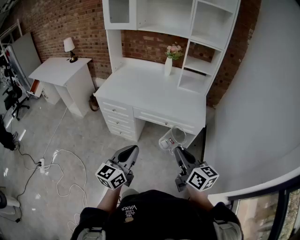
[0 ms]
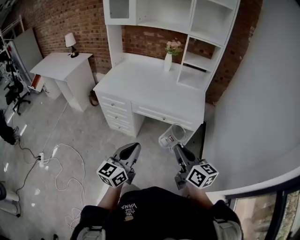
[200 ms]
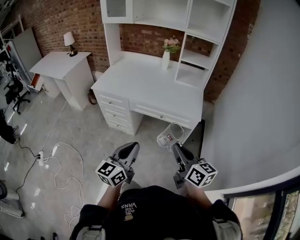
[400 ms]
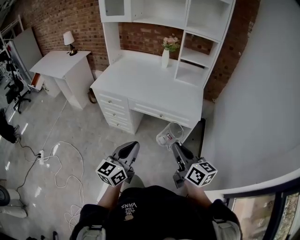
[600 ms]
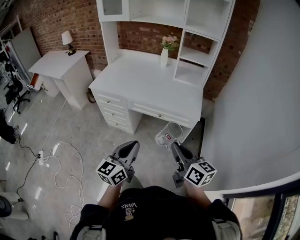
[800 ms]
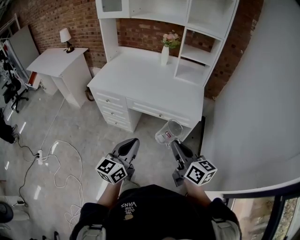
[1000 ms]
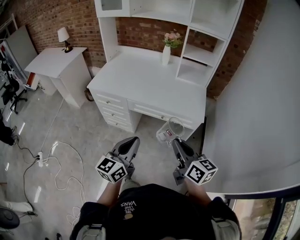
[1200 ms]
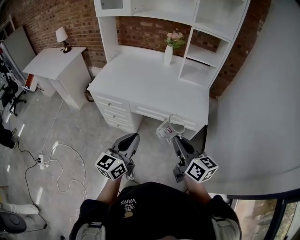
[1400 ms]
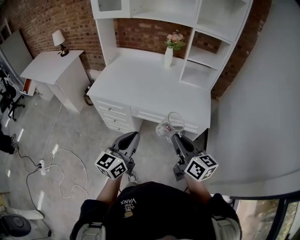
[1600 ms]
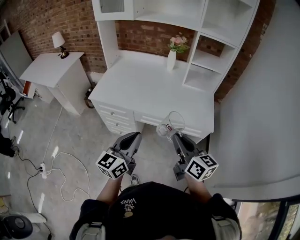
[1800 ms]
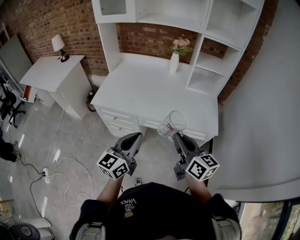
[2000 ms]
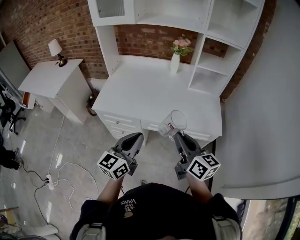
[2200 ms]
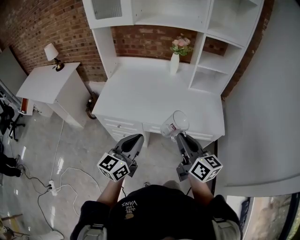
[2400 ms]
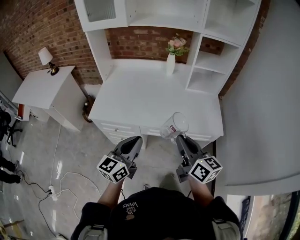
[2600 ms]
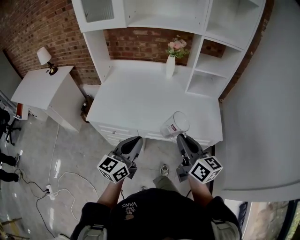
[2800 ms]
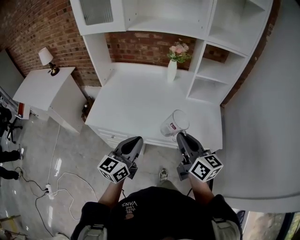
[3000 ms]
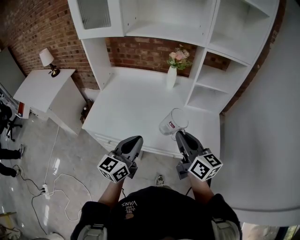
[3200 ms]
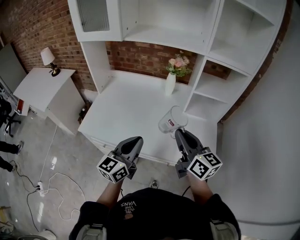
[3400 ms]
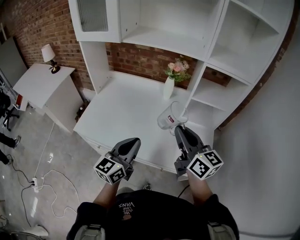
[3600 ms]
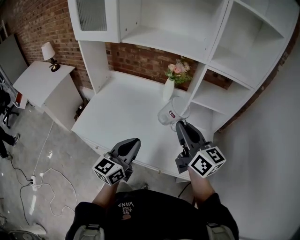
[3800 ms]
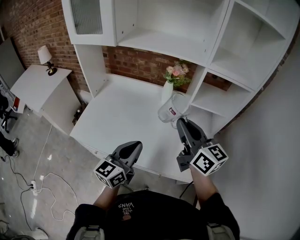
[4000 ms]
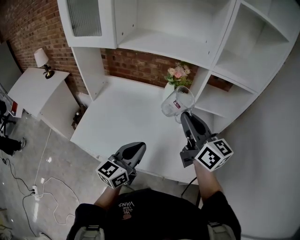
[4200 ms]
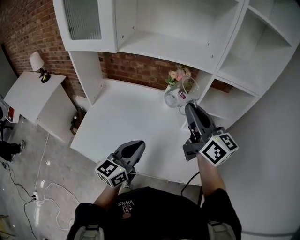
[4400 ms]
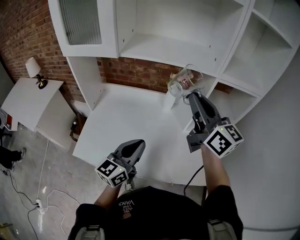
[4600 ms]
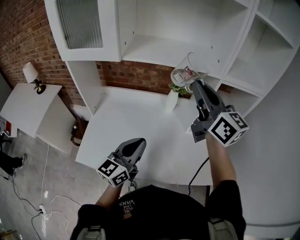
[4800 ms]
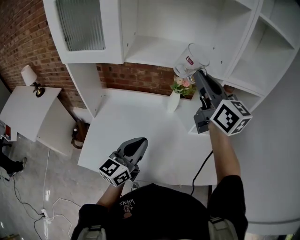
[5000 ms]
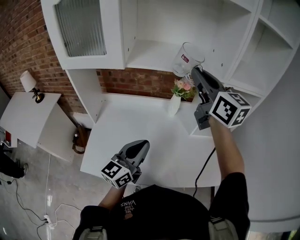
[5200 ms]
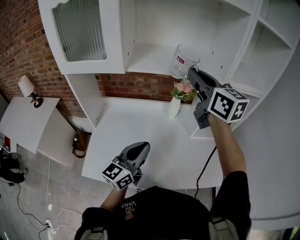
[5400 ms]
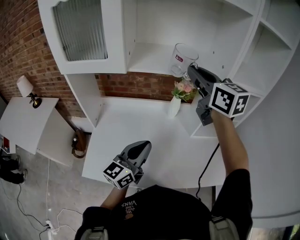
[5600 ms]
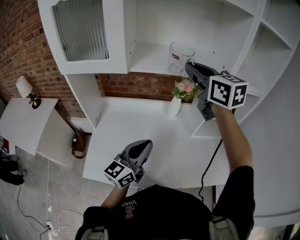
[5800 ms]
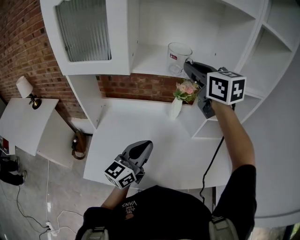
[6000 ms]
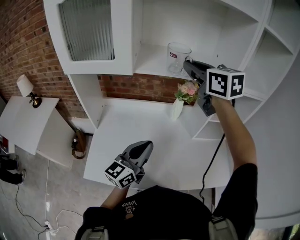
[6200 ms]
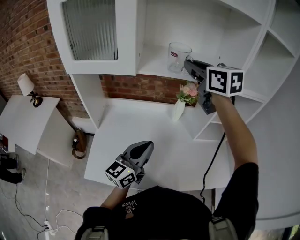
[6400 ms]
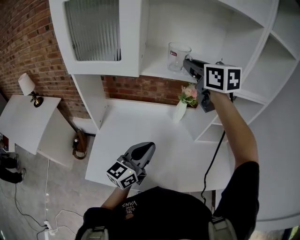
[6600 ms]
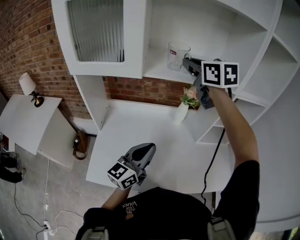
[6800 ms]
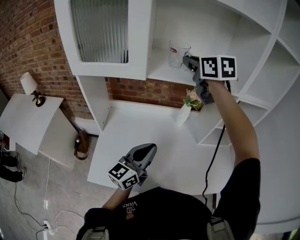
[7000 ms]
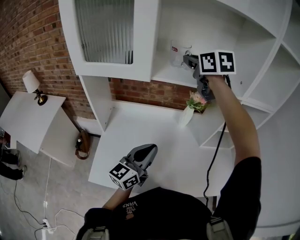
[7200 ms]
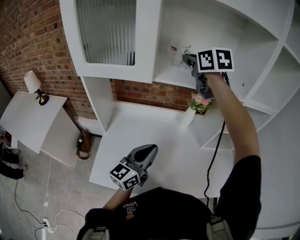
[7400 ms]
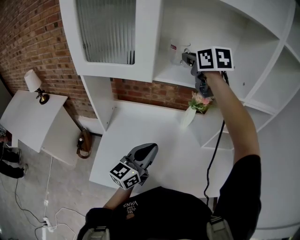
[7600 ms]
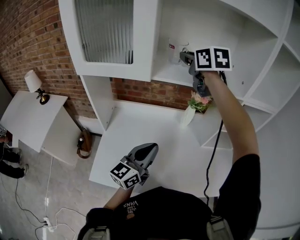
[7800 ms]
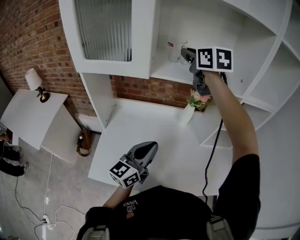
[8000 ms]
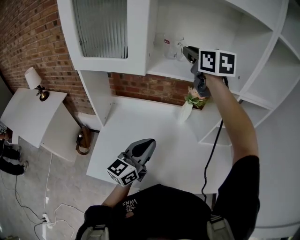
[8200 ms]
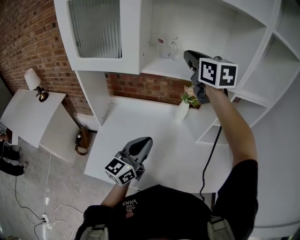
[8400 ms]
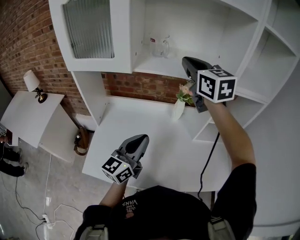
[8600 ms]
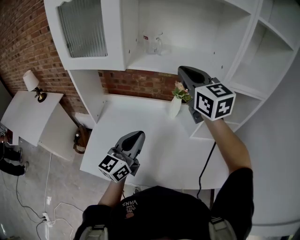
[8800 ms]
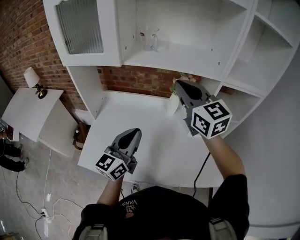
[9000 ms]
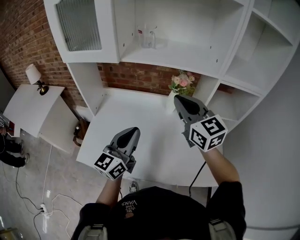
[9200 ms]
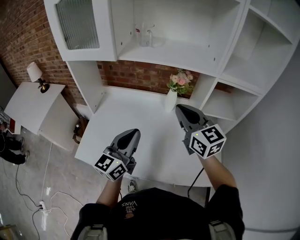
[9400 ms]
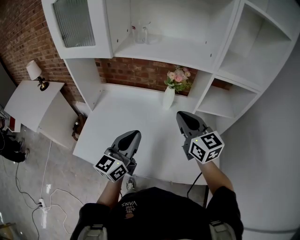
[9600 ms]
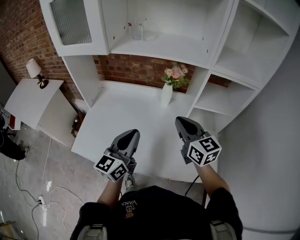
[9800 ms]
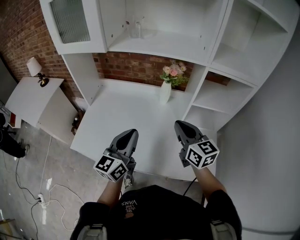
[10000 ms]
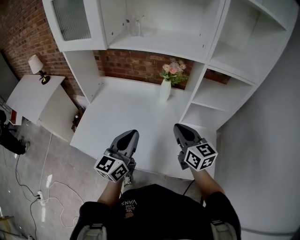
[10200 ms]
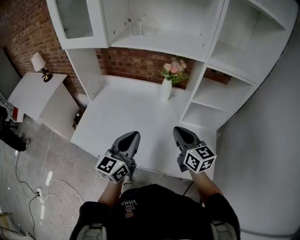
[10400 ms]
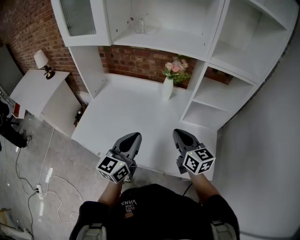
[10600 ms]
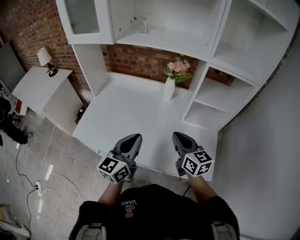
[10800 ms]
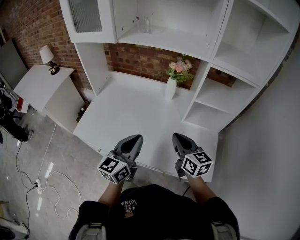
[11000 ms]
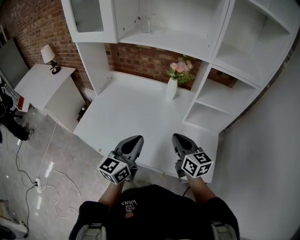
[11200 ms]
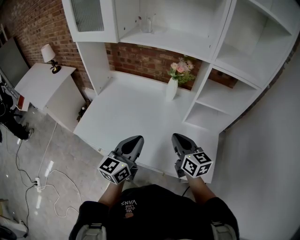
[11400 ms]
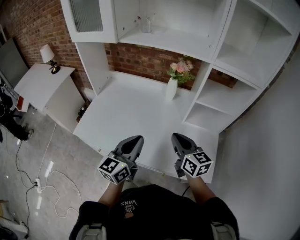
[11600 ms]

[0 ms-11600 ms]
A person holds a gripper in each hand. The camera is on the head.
0 ms to 1400 ms: Both grippers move forward, some 10 cm.
1400 ms to 2800 ms: Both grippers move forward and to the left, roughly 20 cm.
2800 ms to 4400 ms: The right gripper goes approximately 35 cm forward and upward. The left gripper travels forward by some 25 cm.
4400 ms to 5800 ms: The right gripper travels forward, to the left and upward by about 20 cm, and rotates approximately 20 degrees. Meanwhile the left gripper is displaced to the left and forward by some 15 cm.
5800 ms to 7200 ms: The left gripper ends up some 5 cm from where it was. Meanwhile the right gripper travels forward and to the left by roughly 15 cm.
7200 ms to 8800 ms: The right gripper shifts roughly 15 cm backward and to the right, and turns by about 20 degrees; the left gripper ends up roughly 5 cm from where it was.
8800 ms to 10200 ms: The right gripper moves downward, backward and to the right, approximately 30 cm, and swivels approximately 20 degrees, while the left gripper travels to the right and backward by about 15 cm.
10200 ms to 11600 ms: The left gripper ends up about 5 cm from where it was; the right gripper shifts by approximately 5 cm.

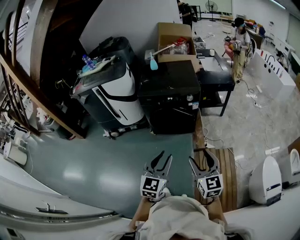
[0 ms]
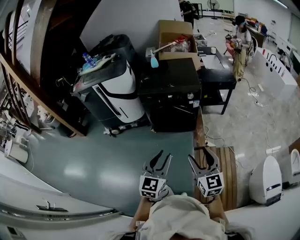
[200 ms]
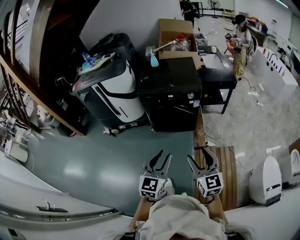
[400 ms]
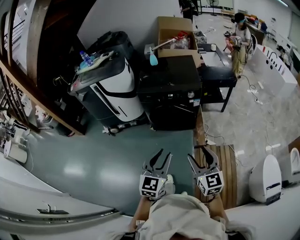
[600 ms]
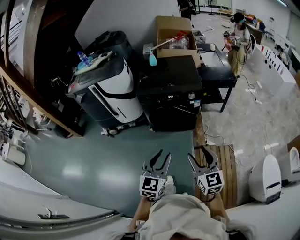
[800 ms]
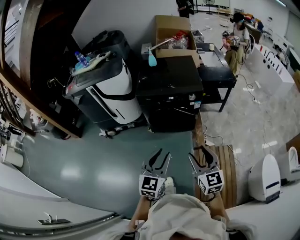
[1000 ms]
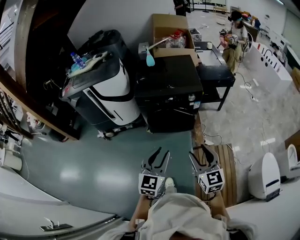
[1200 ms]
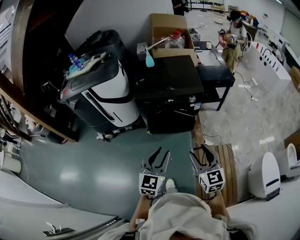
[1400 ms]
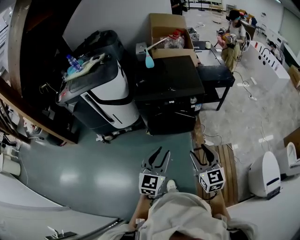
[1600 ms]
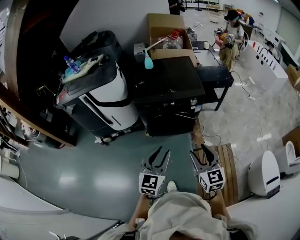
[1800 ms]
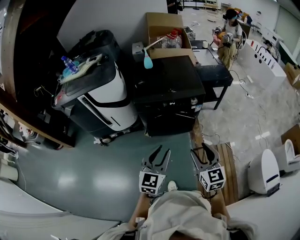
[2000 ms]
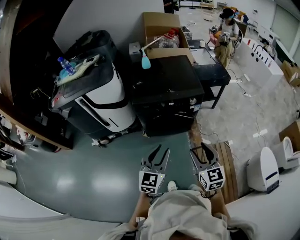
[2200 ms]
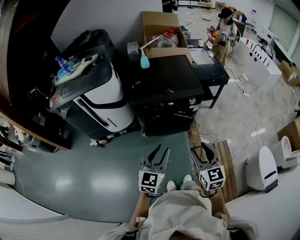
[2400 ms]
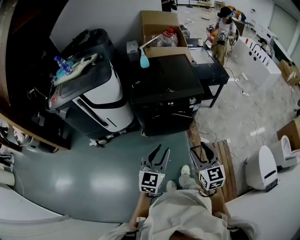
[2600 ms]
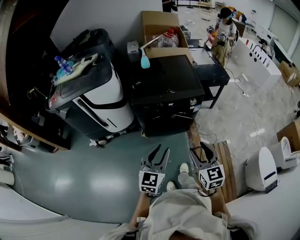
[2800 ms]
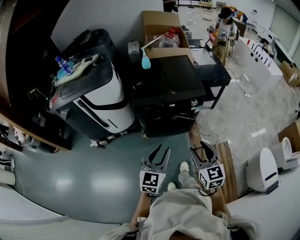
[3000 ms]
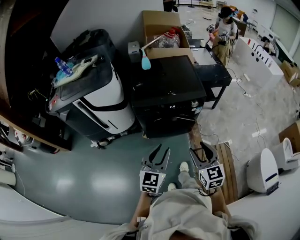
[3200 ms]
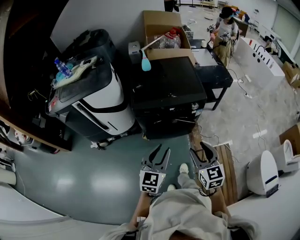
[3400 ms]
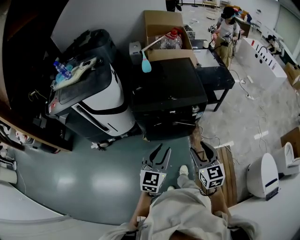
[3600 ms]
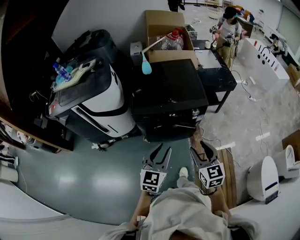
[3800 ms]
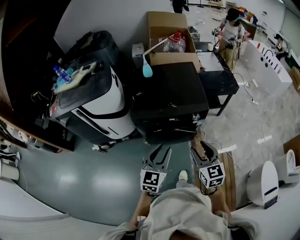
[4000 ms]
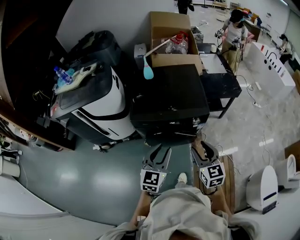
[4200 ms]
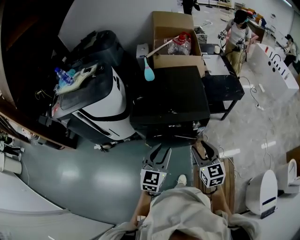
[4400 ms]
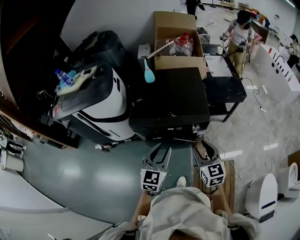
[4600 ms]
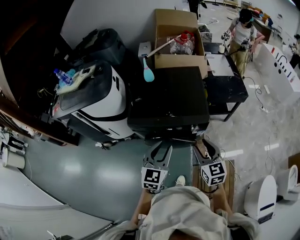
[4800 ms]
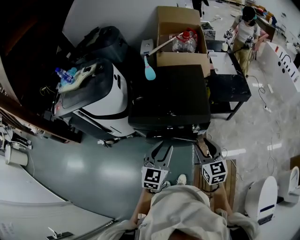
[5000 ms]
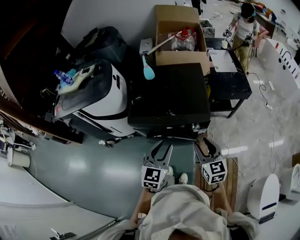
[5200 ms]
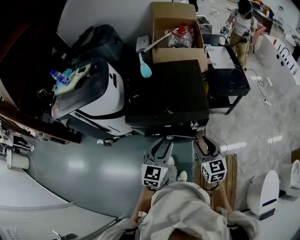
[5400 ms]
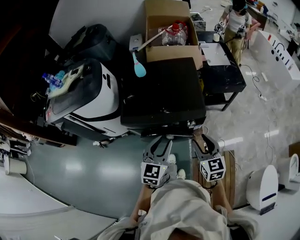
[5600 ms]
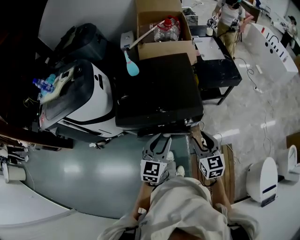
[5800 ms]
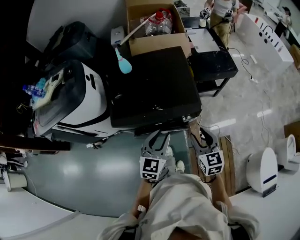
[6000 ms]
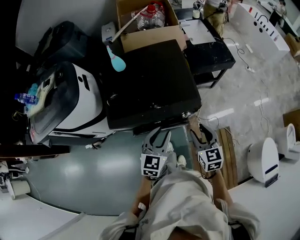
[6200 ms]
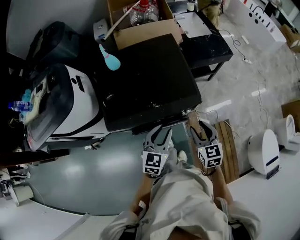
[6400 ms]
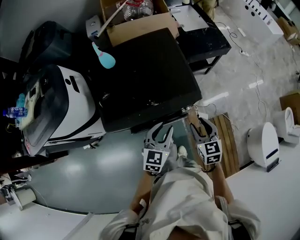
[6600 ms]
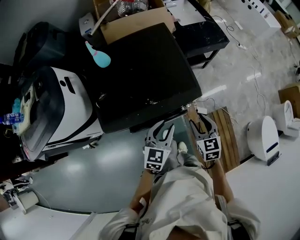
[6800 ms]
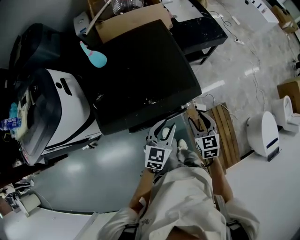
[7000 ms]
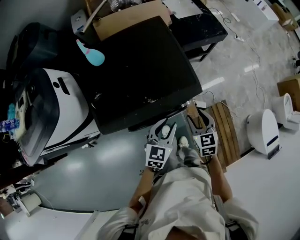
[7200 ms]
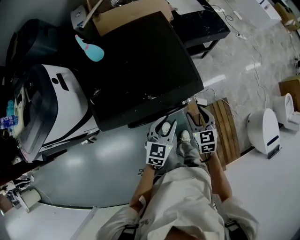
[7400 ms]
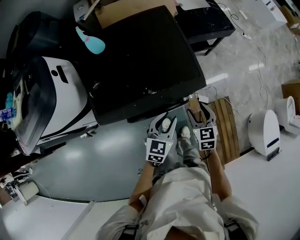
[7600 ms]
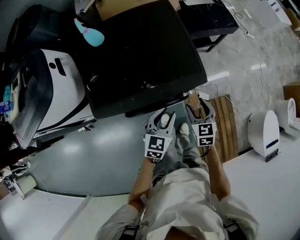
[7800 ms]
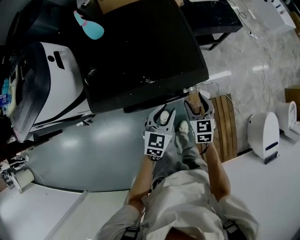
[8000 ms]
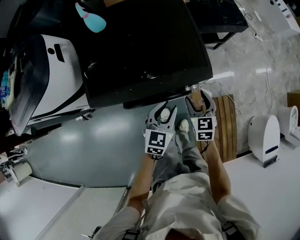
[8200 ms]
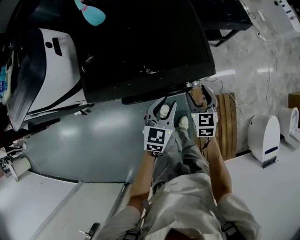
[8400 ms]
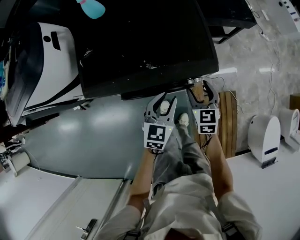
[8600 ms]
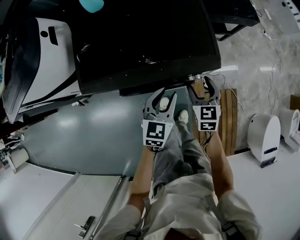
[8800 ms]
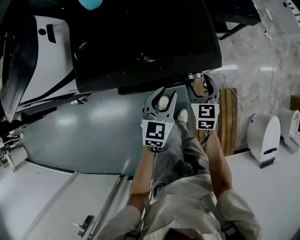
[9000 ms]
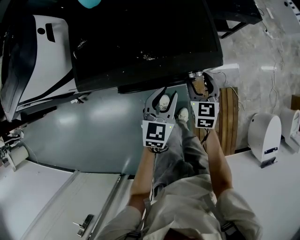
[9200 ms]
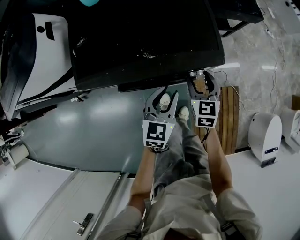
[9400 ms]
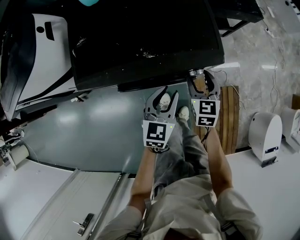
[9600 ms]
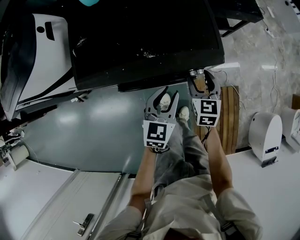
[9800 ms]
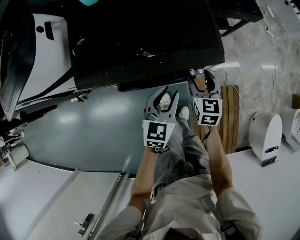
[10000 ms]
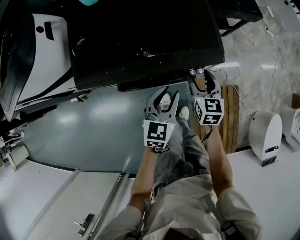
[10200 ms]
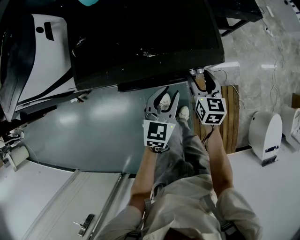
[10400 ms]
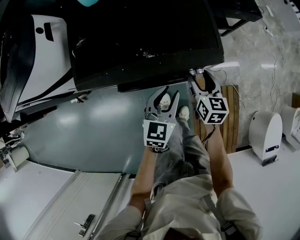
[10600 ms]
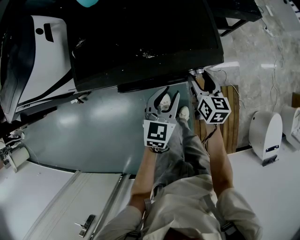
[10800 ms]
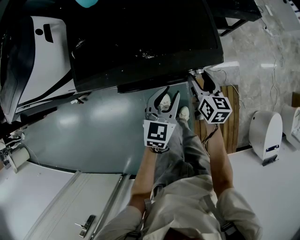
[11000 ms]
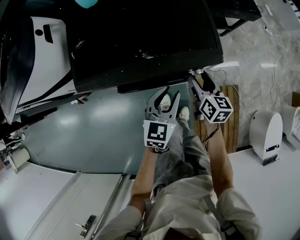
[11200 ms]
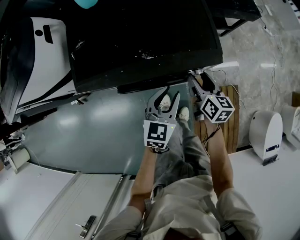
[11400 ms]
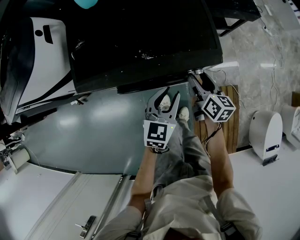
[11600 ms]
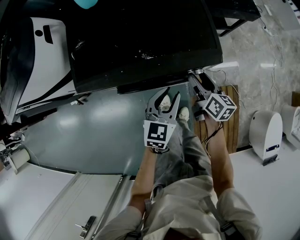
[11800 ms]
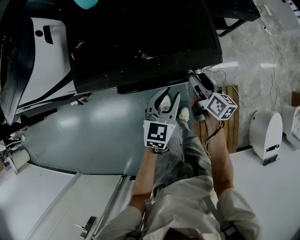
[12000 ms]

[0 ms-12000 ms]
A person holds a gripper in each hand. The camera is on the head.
0 ms to 1600 ms: Both grippers move forward and to the left, roughly 15 cm.
1600 ms to 3000 ms: The two grippers go about 10 cm forward and to the left.
3000 ms to 4400 ms: The left gripper heads forward and to the right, covering roughly 20 cm; the right gripper moves forward, some 20 cm.
4400 ms to 6000 ms: The grippers both shift forward, to the right and downward by some 15 cm.
6000 ms to 7600 ms: Both grippers travel together downward, roughly 15 cm.
7600 ms to 9000 ms: Both grippers move downward, about 5 cm.
9000 ms to 10400 ms: The grippers move only a little.
10400 ms to 12000 ms: The right gripper turns by some 40 degrees.
